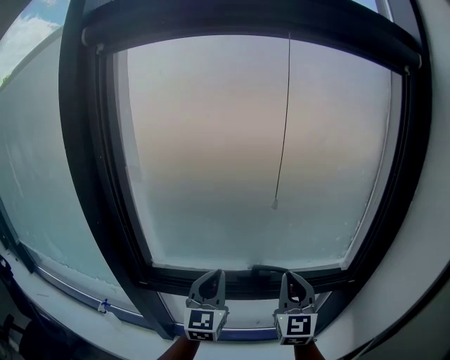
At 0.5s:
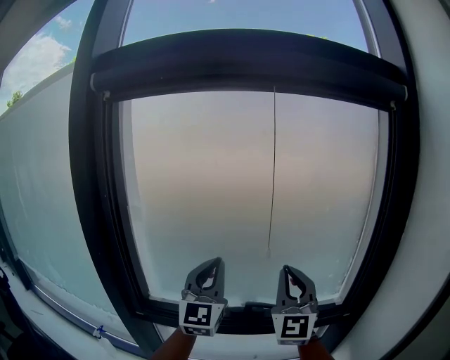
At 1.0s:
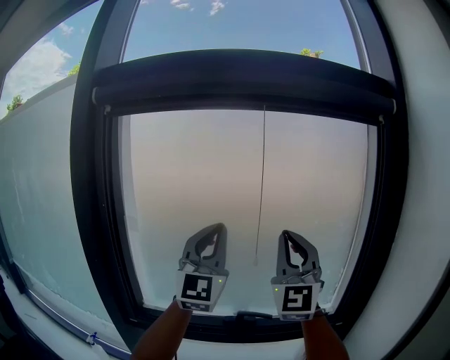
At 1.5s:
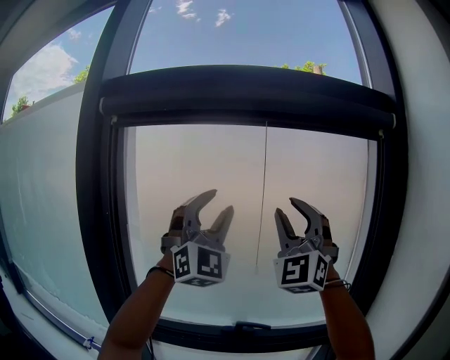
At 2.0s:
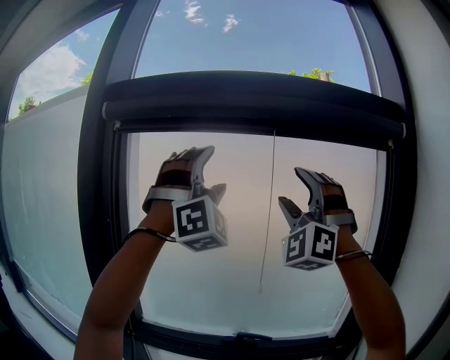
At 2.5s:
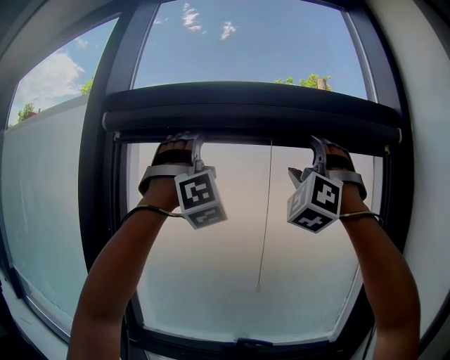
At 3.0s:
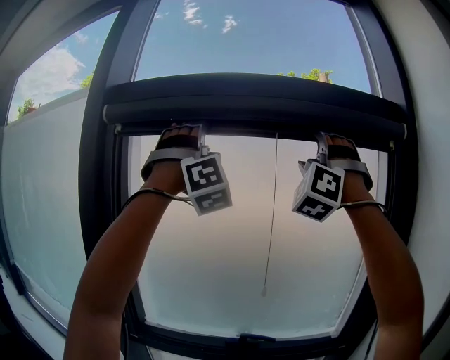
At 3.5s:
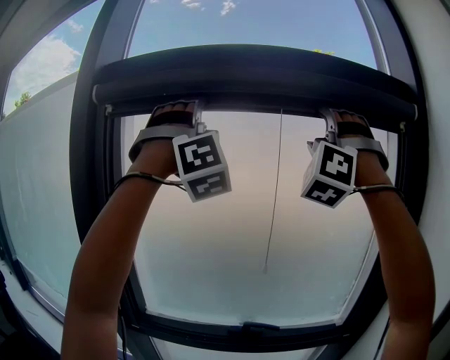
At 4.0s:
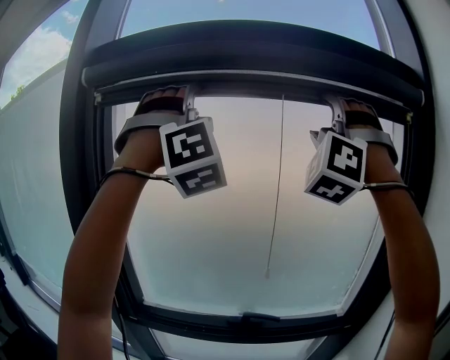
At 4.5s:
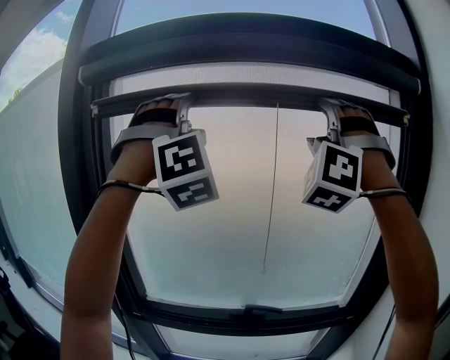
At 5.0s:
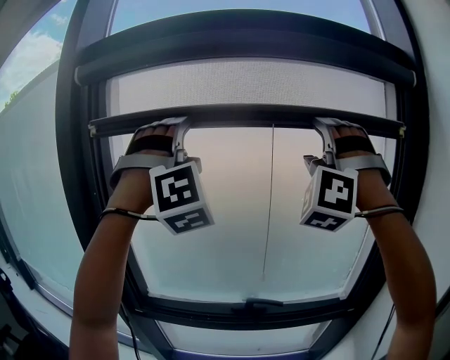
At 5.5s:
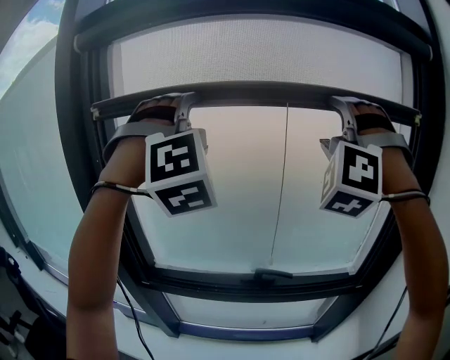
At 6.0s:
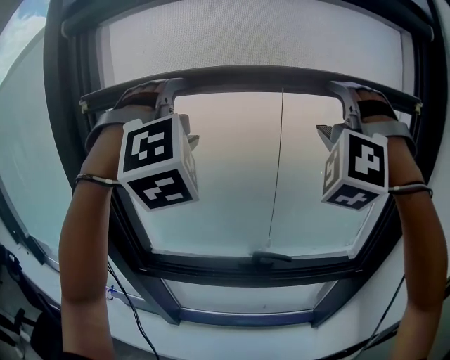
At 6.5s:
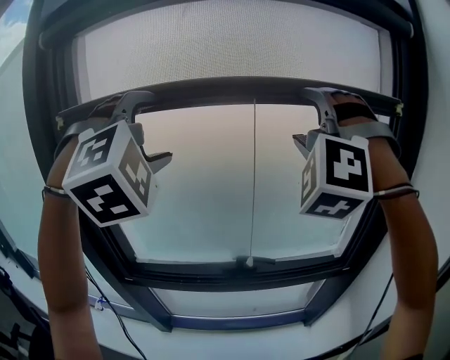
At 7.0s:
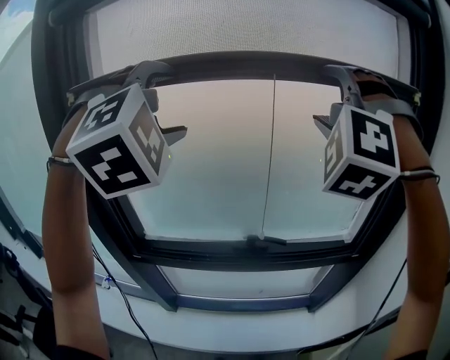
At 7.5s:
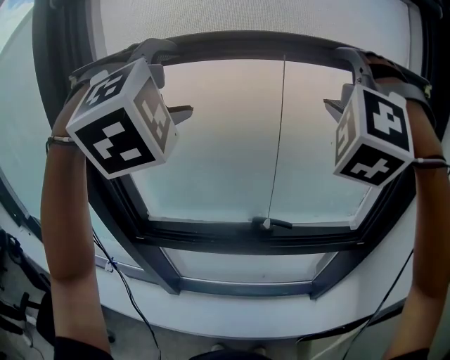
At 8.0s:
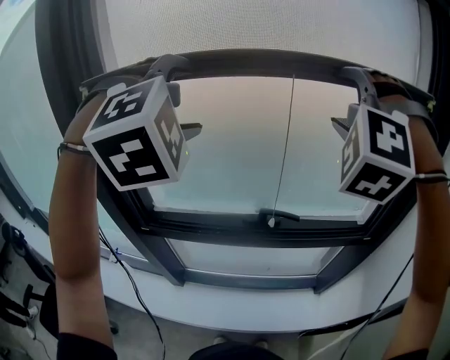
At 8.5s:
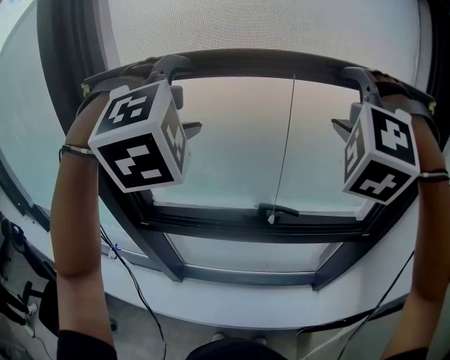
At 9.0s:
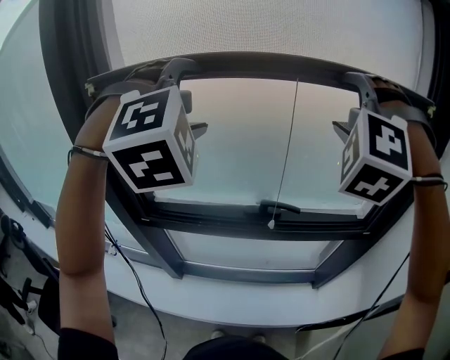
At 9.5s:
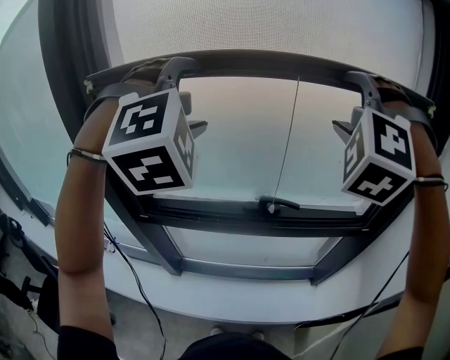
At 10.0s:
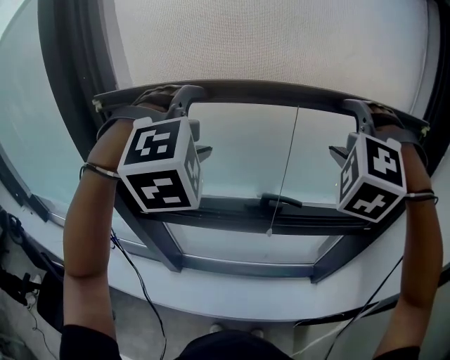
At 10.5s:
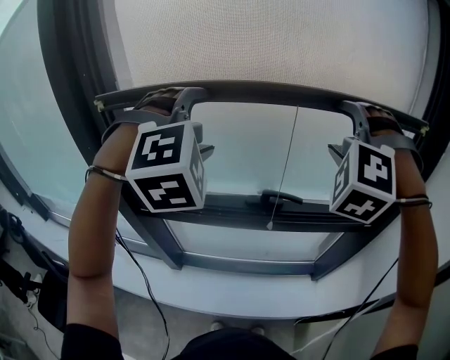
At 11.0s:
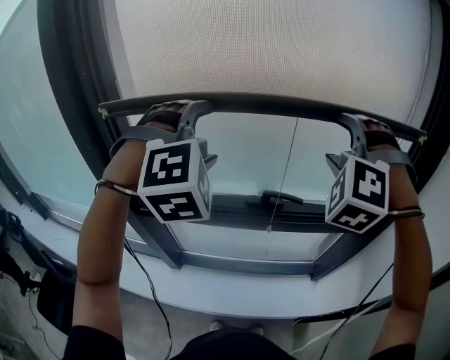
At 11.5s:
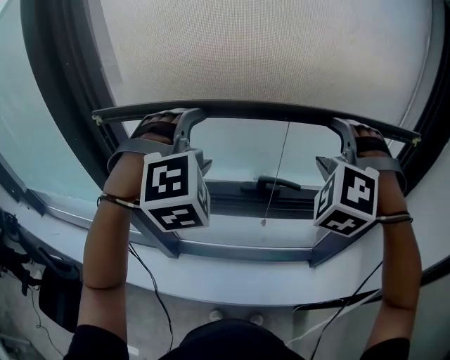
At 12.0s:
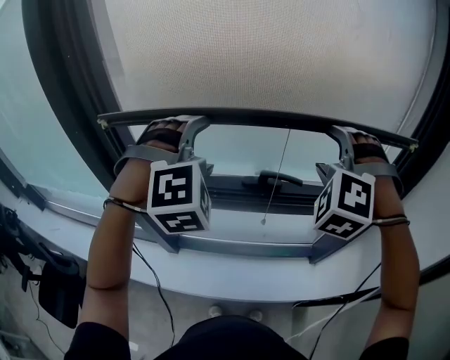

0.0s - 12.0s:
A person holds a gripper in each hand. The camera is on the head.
0.0s - 2.0s: Both grippers move upward, about 40 cm. The right gripper twists about 70 degrees counterclockwise, seen from behind, and opens up, while the left gripper rolls clockwise, seen from behind, by about 80 degrees, and opens up.
2.0s - 4.0s: The right gripper travels upward by some 10 cm, and rotates approximately 20 degrees. Meanwhile the left gripper goes some 5 cm upward.
4.0s - 6.0s: Both grippers travel together downward, approximately 15 cm. The left gripper changes its angle by about 20 degrees.
6.0s - 8.0s: Both grippers travel together downward, approximately 10 cm.
8.0s - 10.0s: Both grippers move downward, about 10 cm.
10.0s - 12.0s: The two grippers go about 10 cm downward.

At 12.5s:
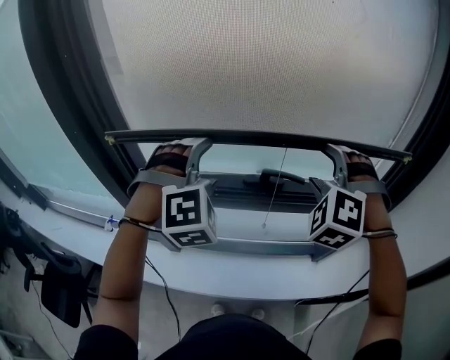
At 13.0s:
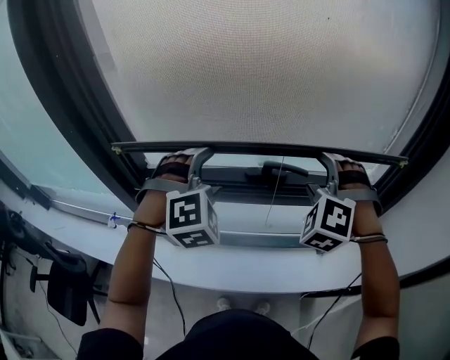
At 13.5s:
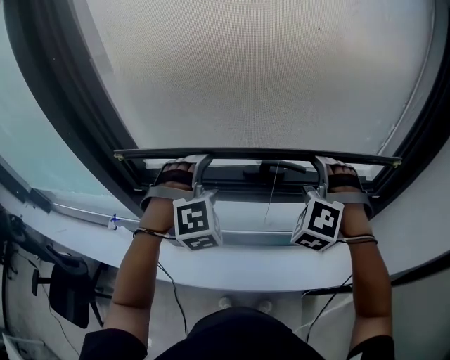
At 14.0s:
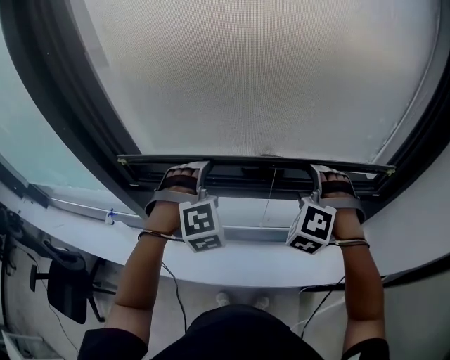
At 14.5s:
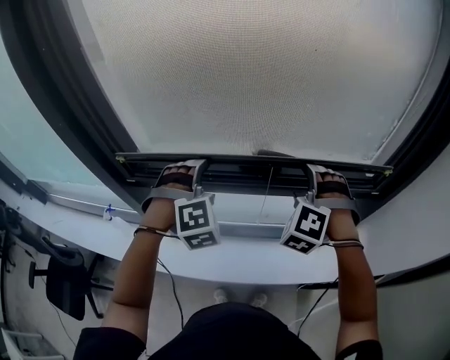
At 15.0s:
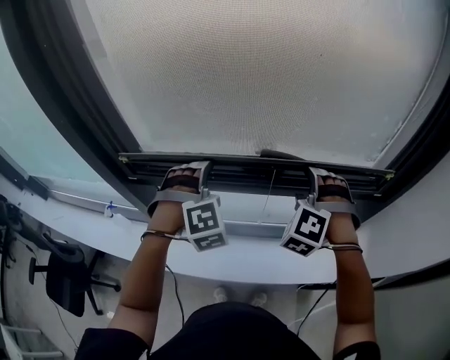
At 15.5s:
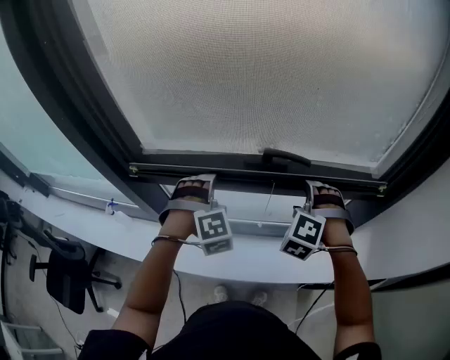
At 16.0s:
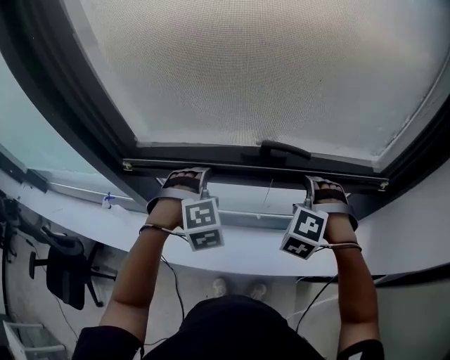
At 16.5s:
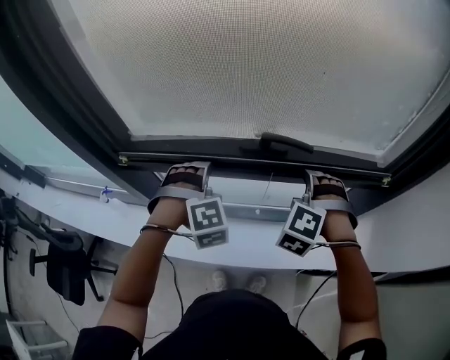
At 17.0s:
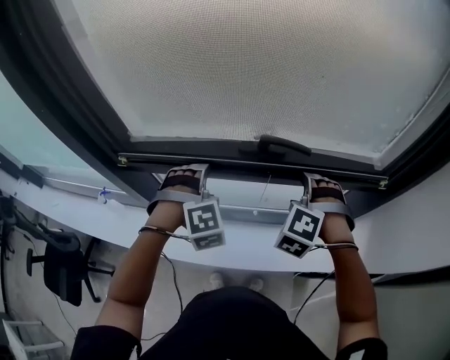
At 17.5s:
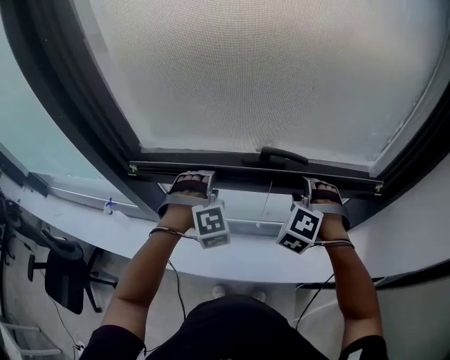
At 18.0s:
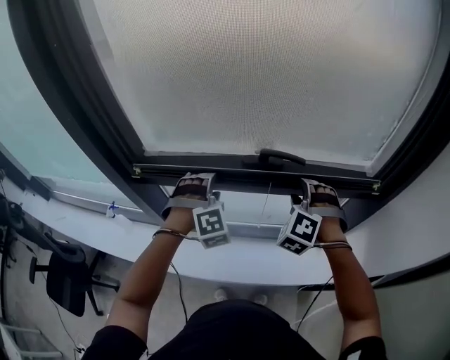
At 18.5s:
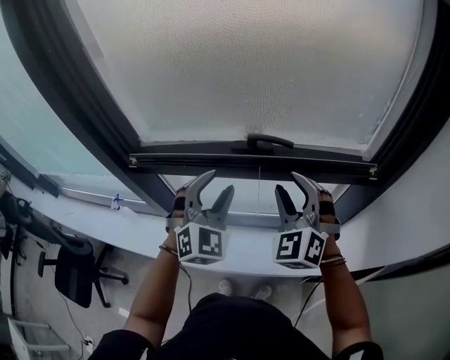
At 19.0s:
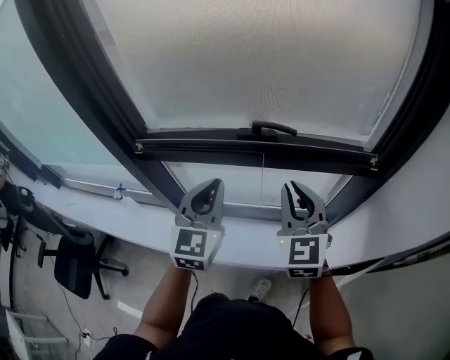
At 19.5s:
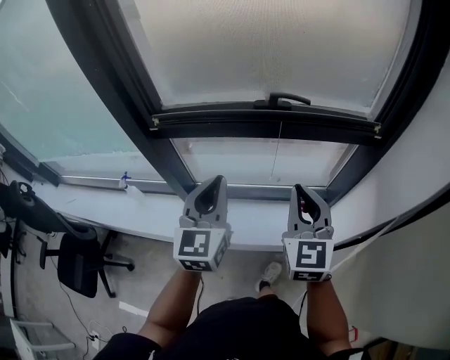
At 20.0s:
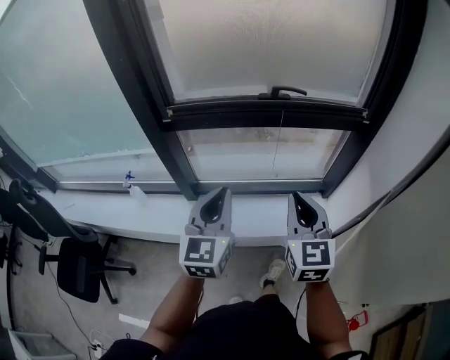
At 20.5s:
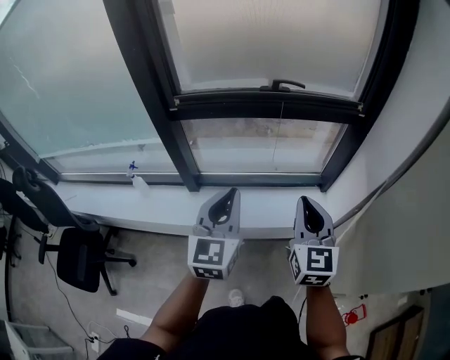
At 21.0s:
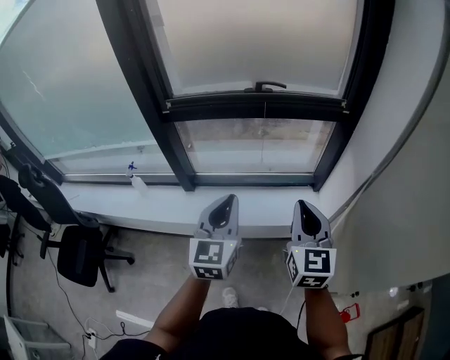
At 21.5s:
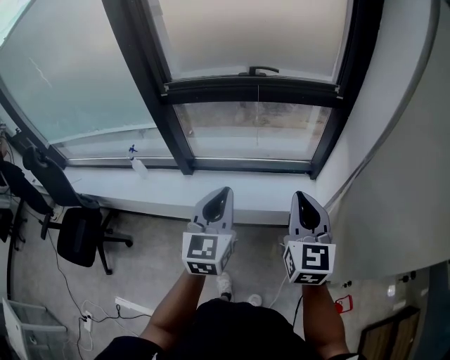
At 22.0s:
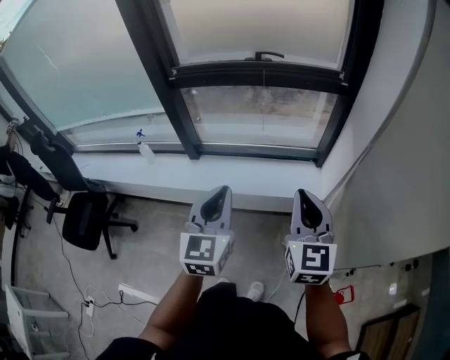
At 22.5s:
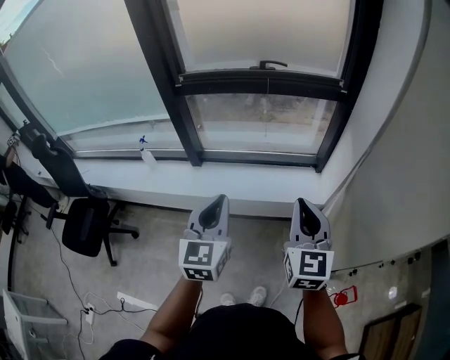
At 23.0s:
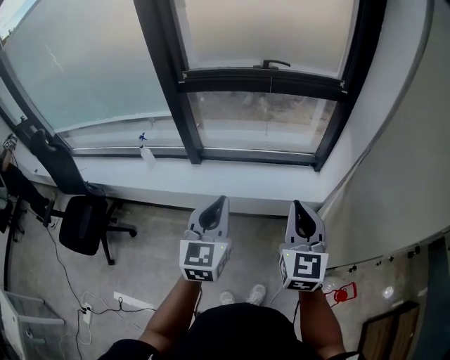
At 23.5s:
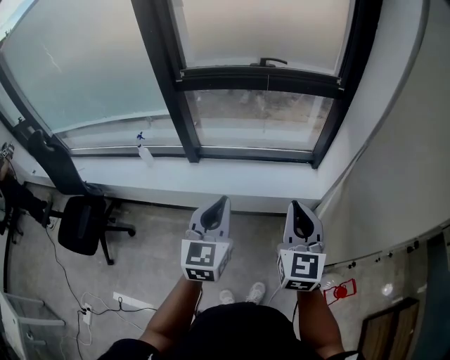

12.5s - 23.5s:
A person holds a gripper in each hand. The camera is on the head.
12.5s - 14.5s: The two grippers go about 15 cm downward.
14.5s - 16.0s: The two grippers go some 5 cm downward.
16.0s - 18.0s: The right gripper closes up, while the left gripper closes its fingers.
18.0s - 20.0s: Both grippers move backward, some 30 cm. The left gripper twists roughly 70 degrees counterclockwise, seen from behind, and closes up, while the right gripper rotates around the line of its fingers by roughly 70 degrees, clockwise from behind, and closes.
20.0s - 21.5s: Both grippers move backward and to the right, roughly 20 cm.
21.5s - 23.5s: The two grippers go roughly 15 cm backward and to the left.

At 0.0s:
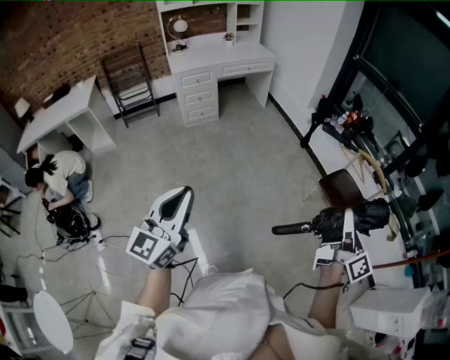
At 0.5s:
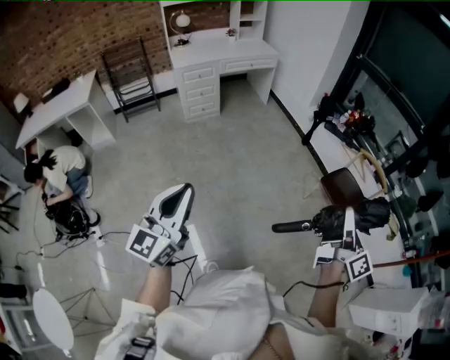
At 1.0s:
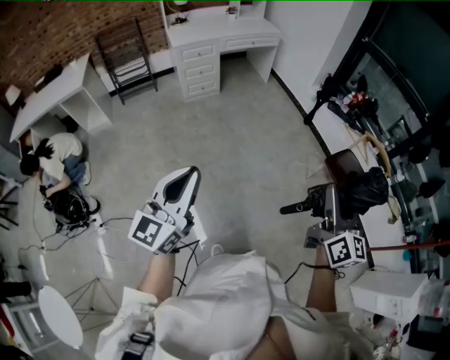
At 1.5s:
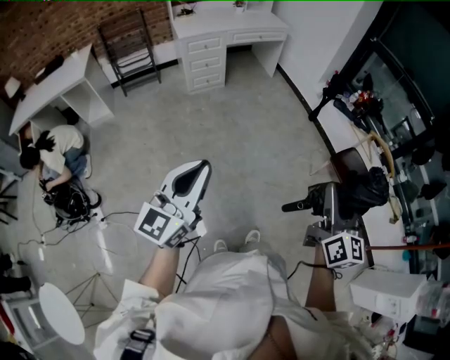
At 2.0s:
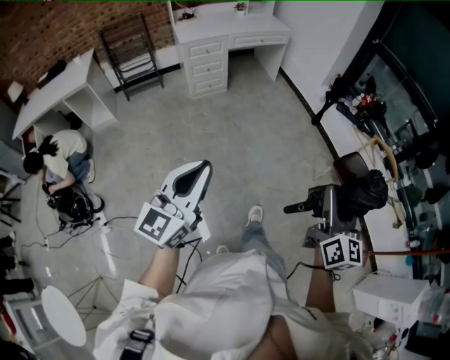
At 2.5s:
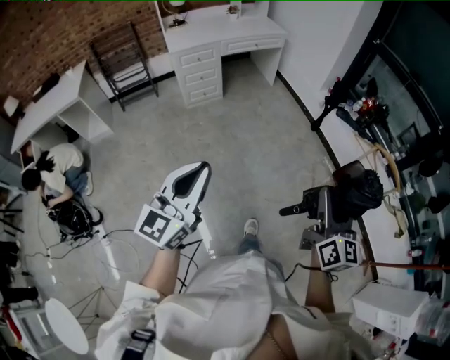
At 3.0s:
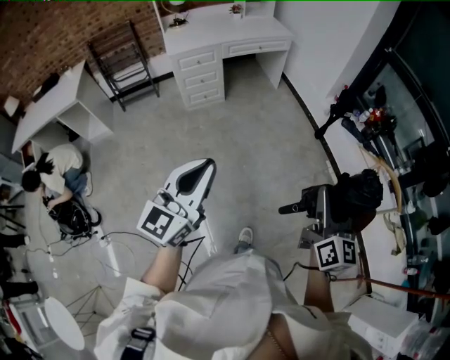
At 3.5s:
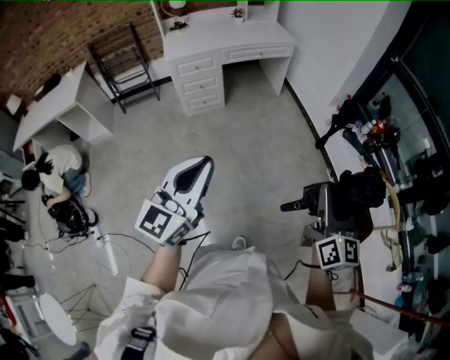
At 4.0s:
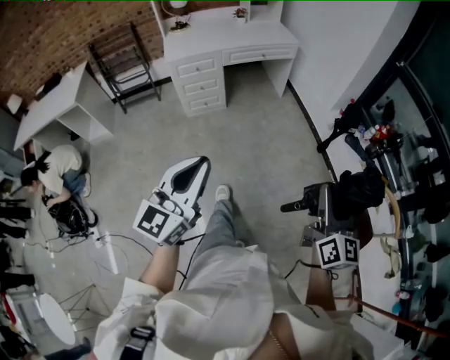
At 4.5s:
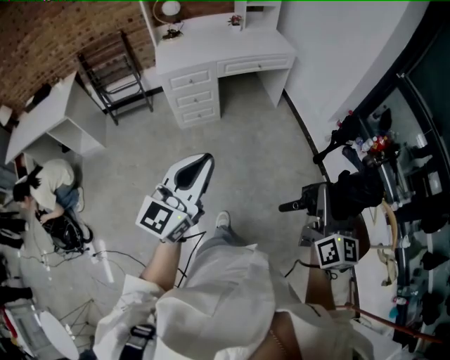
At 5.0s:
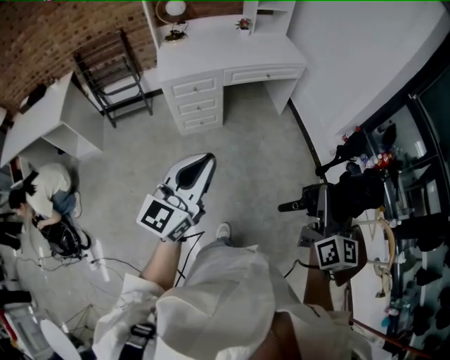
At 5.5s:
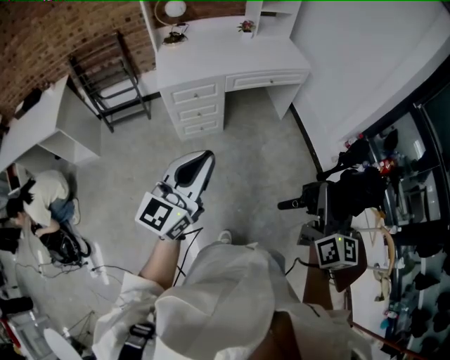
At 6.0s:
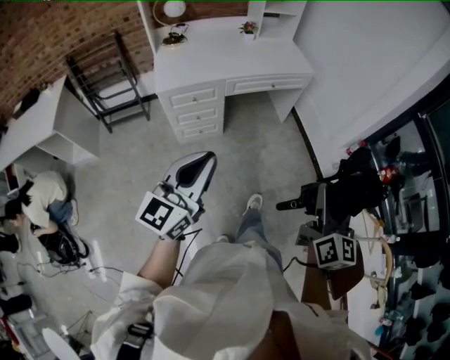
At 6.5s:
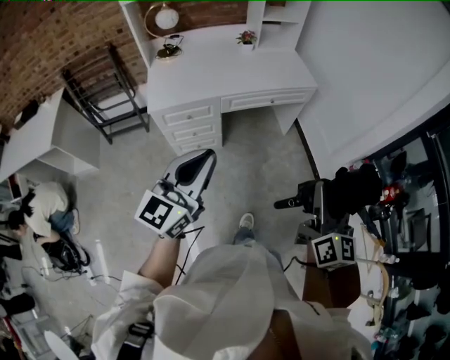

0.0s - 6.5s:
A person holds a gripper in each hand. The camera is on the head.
0.0s - 2.0s: The right gripper moves to the left, roughly 20 cm, and rotates approximately 40 degrees. Meanwhile the left gripper moves to the left and forward, about 10 cm.
2.0s - 4.5s: The pair of grippers is taken forward, about 50 cm.
4.5s - 6.5s: The two grippers travel together, forward, roughly 40 cm.
